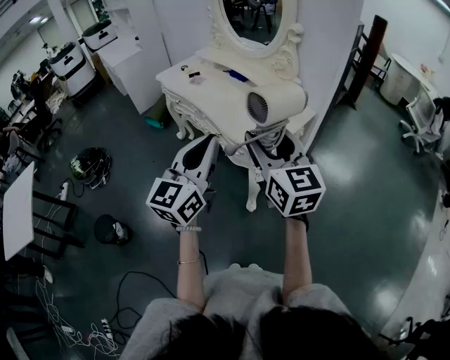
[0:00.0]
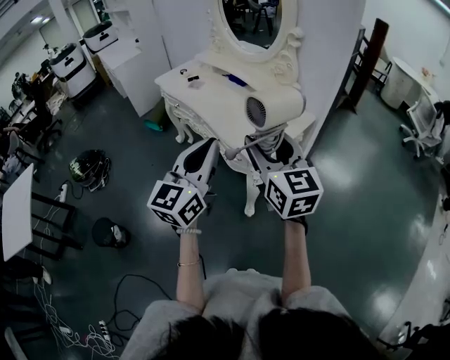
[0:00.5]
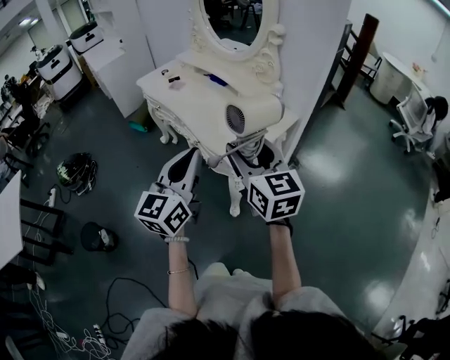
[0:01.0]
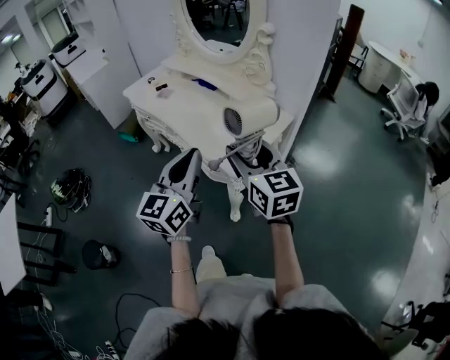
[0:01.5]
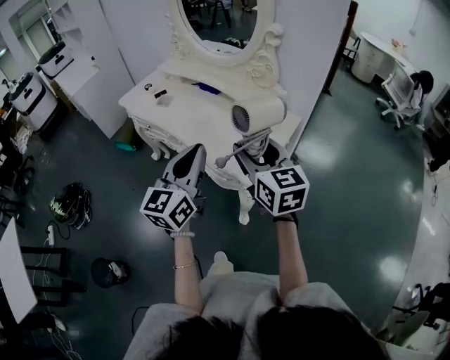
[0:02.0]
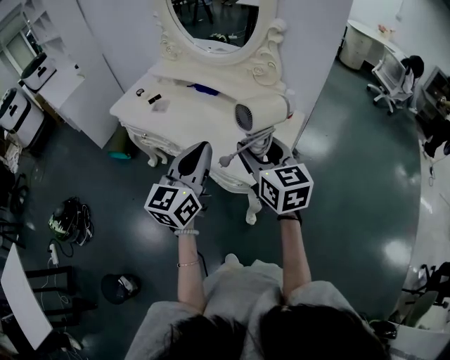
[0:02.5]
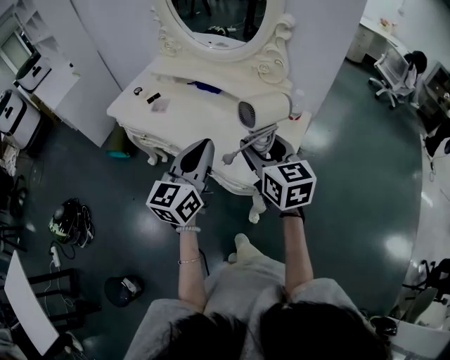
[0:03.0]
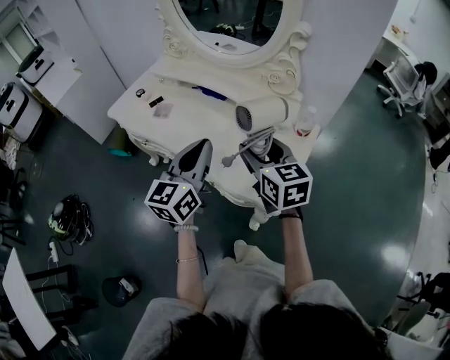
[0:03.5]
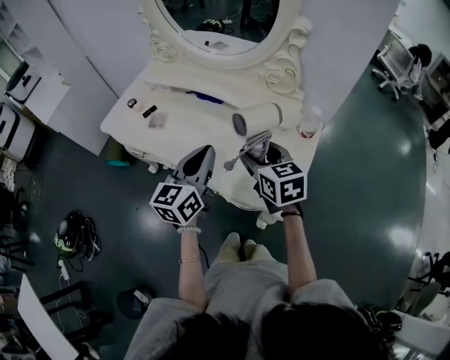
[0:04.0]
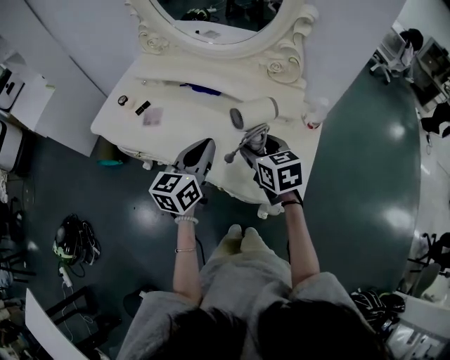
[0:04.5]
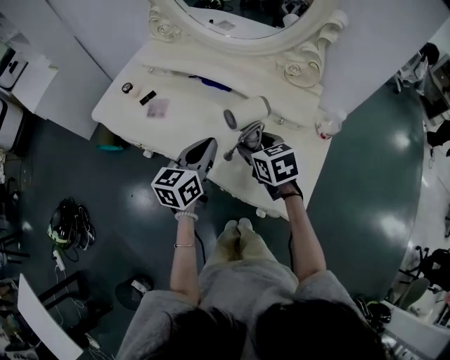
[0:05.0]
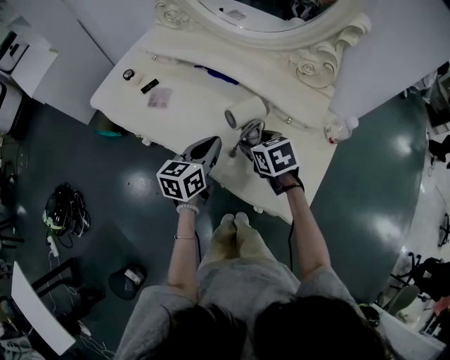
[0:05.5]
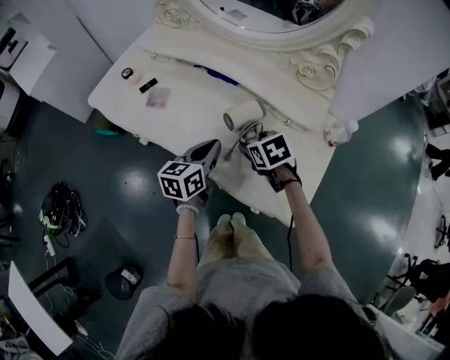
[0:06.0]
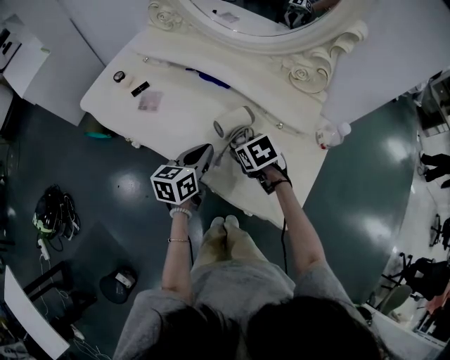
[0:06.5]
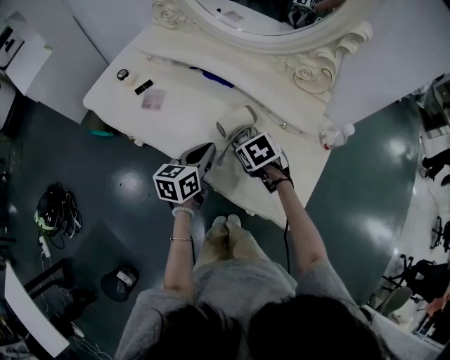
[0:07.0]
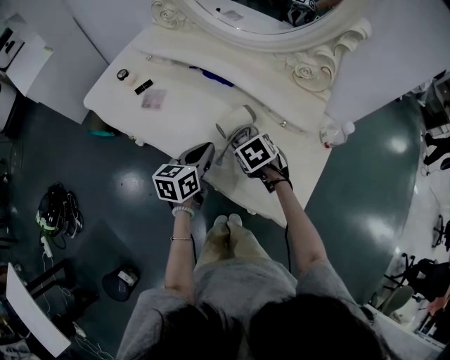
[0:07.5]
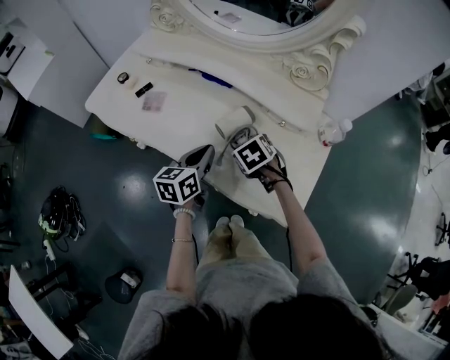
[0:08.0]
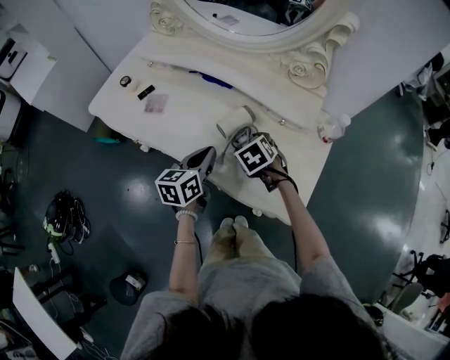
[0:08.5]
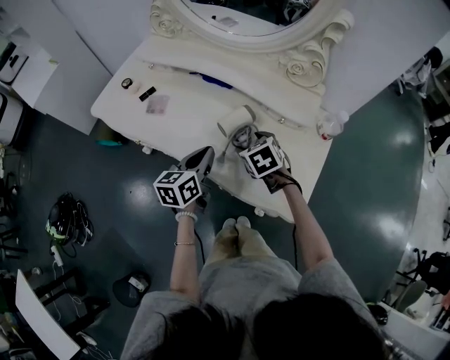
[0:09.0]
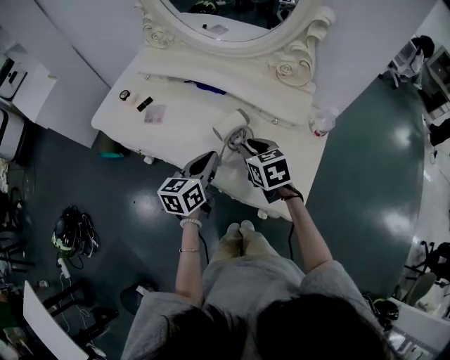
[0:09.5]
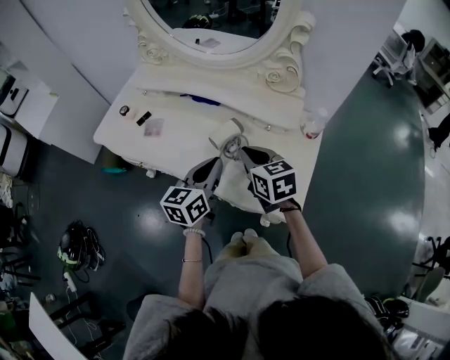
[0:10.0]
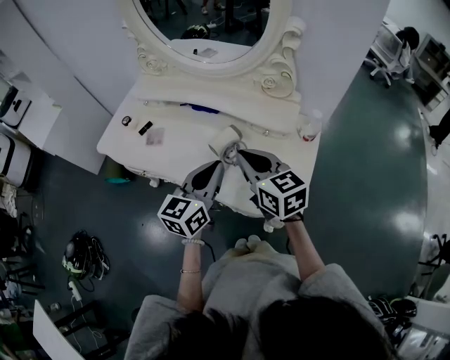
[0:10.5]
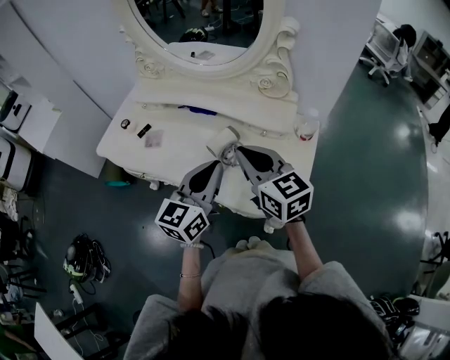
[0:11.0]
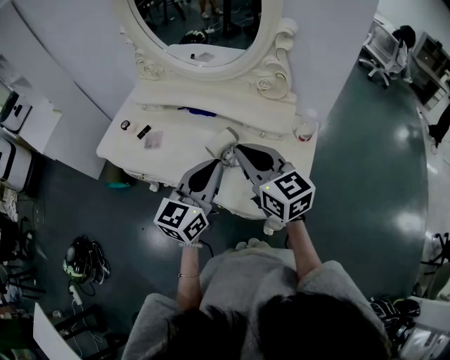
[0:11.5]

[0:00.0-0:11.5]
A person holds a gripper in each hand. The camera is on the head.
0:00.0 to 0:02.0: The grippers both shift forward by approximately 15 cm.
0:02.0 to 0:04.0: The left gripper heads forward, covering about 25 cm. The right gripper heads forward and downward, covering some 25 cm.
0:04.0 to 0:06.0: Both grippers travel together downward and forward, approximately 20 cm. The right gripper points its fingers roughly 30 degrees further downward. Meanwhile the left gripper changes its angle by roughly 20 degrees.
0:06.0 to 0:07.5: The grippers stay close to where they were, moving slightly.
0:07.5 to 0:09.5: The right gripper shifts some 10 cm upward, rotates about 30 degrees, and closes up; the left gripper shifts by about 5 cm.
0:09.5 to 0:11.5: The grippers both shift upward by roughly 15 cm. The right gripper angles its fingers upward, by approximately 30 degrees; the left gripper rotates some 30 degrees.

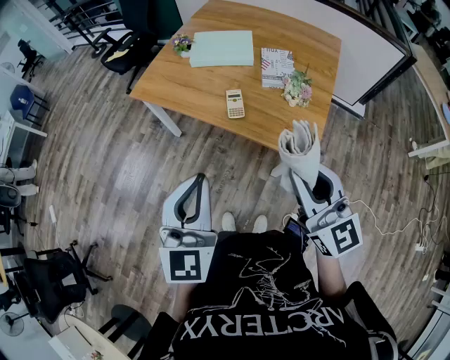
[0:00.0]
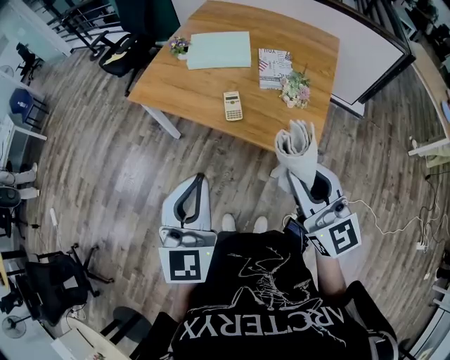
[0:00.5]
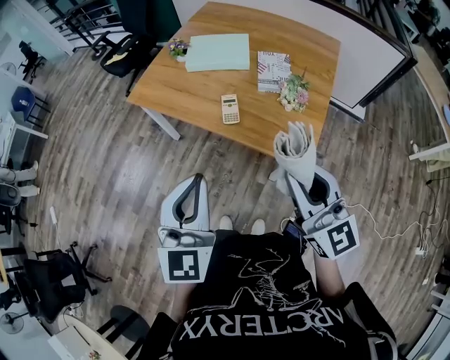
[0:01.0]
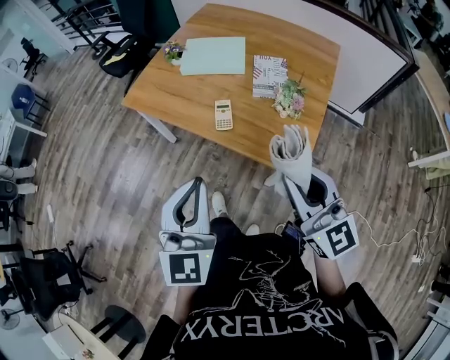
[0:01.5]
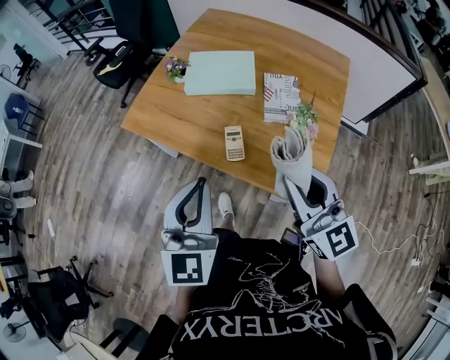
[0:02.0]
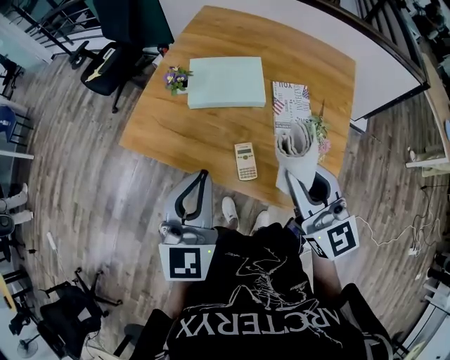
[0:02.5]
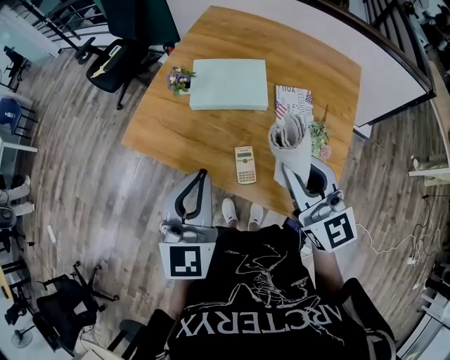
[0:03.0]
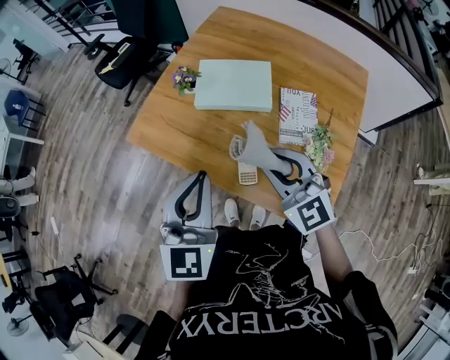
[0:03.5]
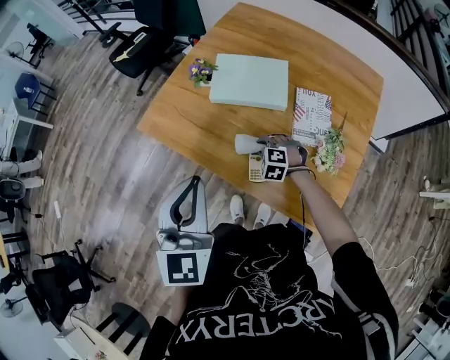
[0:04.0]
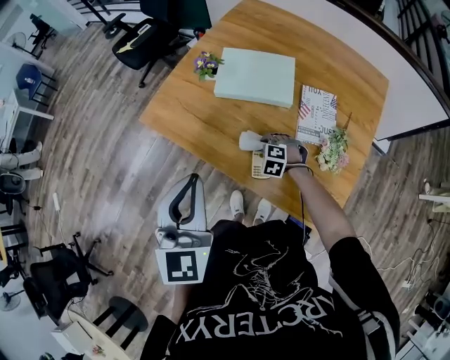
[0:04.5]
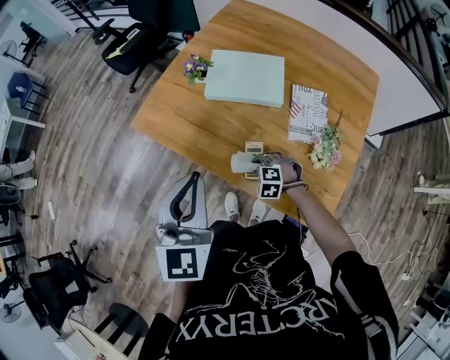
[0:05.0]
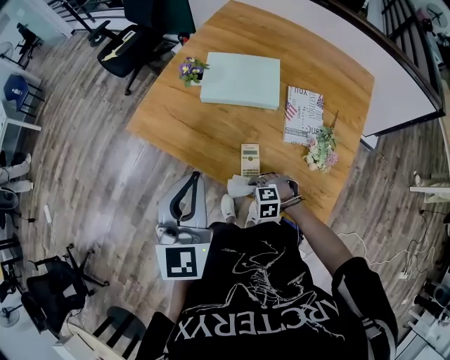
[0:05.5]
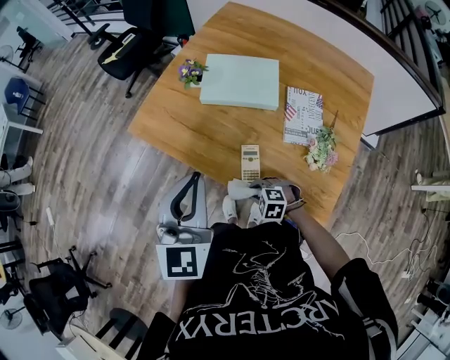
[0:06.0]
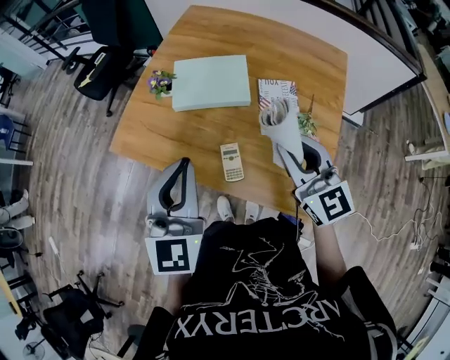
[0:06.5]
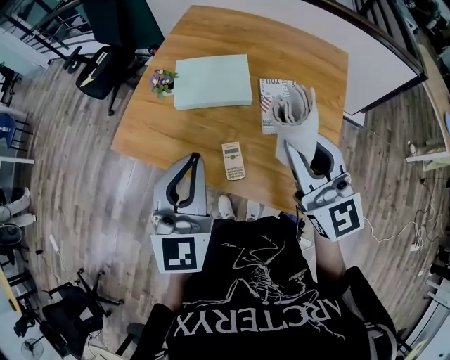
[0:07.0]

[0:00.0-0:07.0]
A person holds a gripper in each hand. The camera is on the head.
0:00.0 to 0:02.0: The grippers both shift forward by roughly 20 cm.
0:02.0 to 0:03.5: The grippers both shift forward by approximately 15 cm. The right gripper turns by approximately 30 degrees.
0:03.5 to 0:05.0: The right gripper goes some 35 cm downward, and points its fingers some 50 degrees further downward.
0:05.0 to 0:07.0: The left gripper changes place by roughly 10 cm; the right gripper moves upward, roughly 40 cm, and angles its fingers upward, by some 70 degrees.

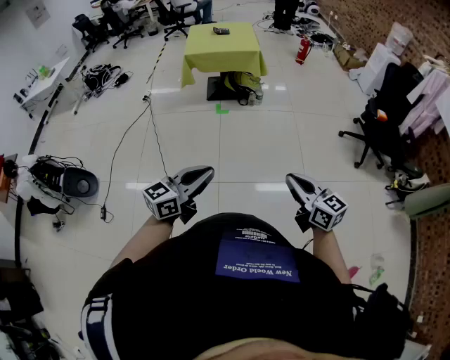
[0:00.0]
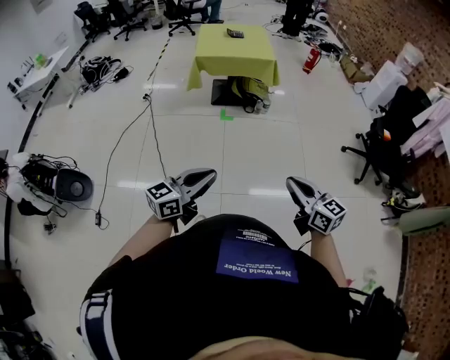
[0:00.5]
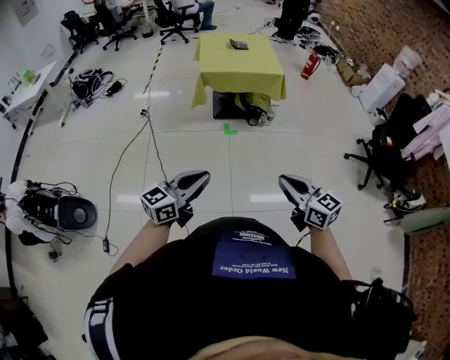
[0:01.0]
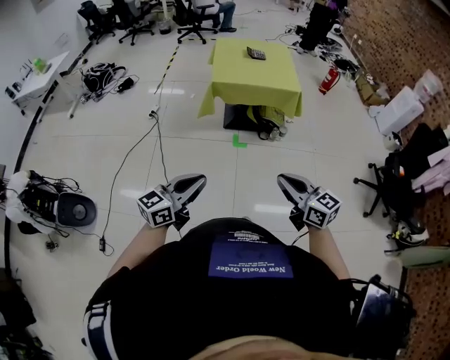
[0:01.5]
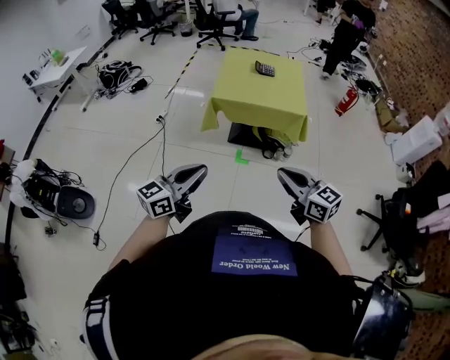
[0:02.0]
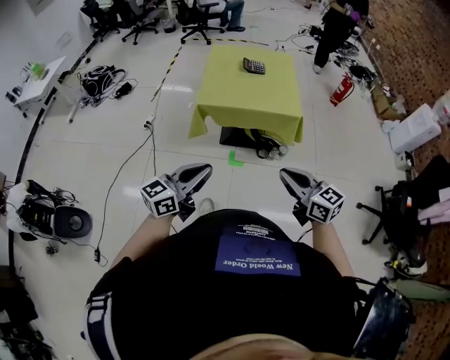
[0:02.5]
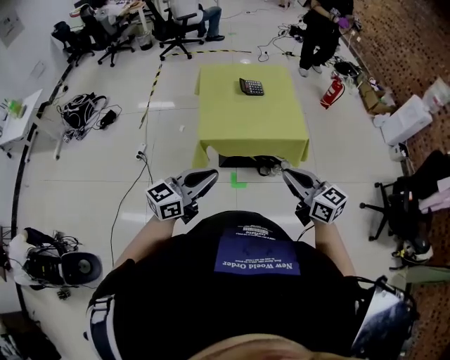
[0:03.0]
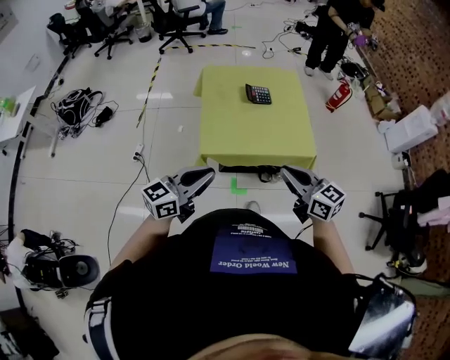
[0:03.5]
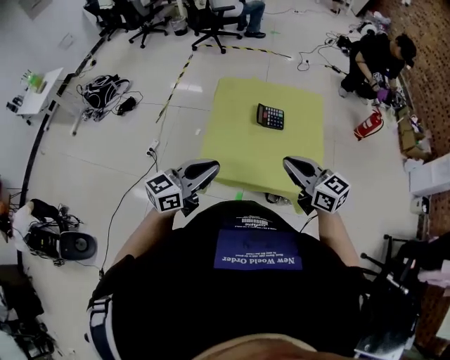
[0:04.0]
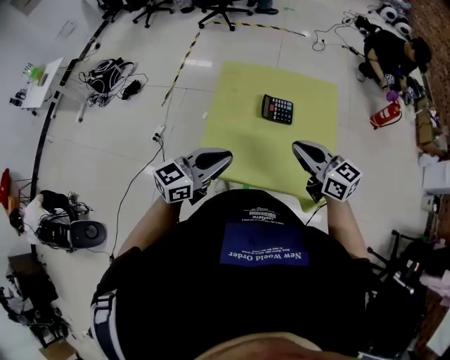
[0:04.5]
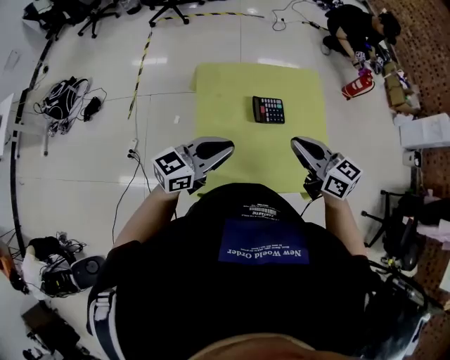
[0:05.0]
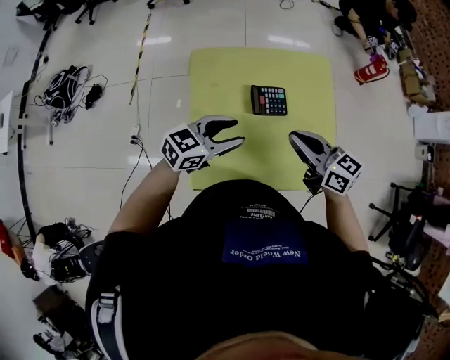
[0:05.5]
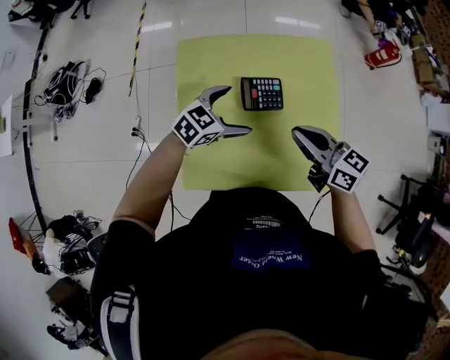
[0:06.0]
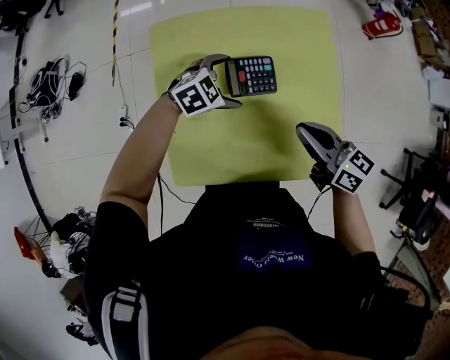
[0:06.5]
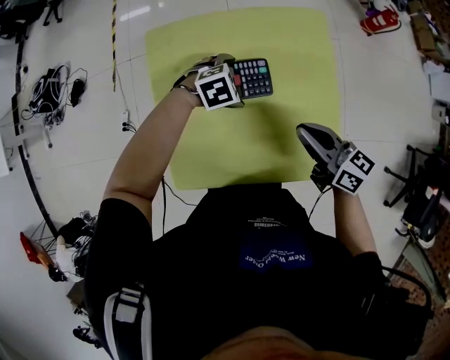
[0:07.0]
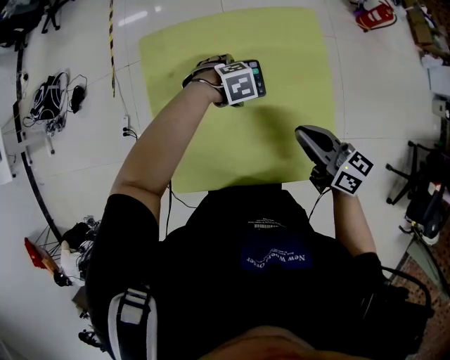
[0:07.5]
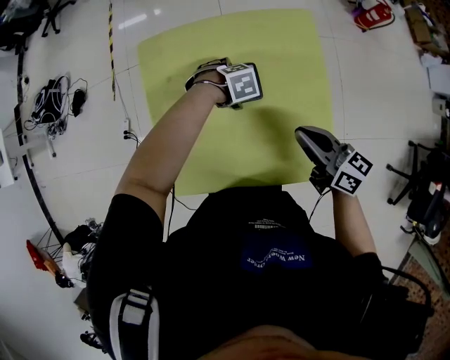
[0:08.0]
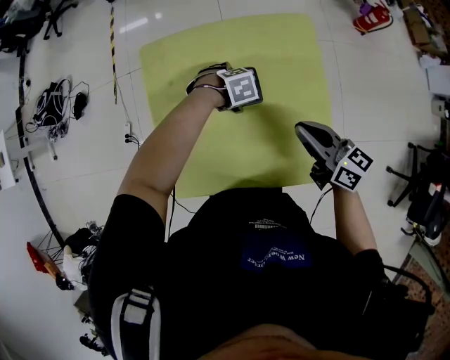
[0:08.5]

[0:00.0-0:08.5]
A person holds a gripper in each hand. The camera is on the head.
0:00.0 to 0:02.0: Both grippers are carried forward, roughly 60 cm.
0:02.0 to 0:04.0: Both grippers are carried forward, some 60 cm.
0:04.0 to 0:06.5: The right gripper changes place by about 25 cm, and swivels about 30 degrees, while the left gripper moves about 50 cm, tilts its fingers about 50 degrees downward, and opens up.
0:06.5 to 0:08.5: The left gripper travels downward by approximately 5 cm, and points its fingers approximately 30 degrees further downward.
